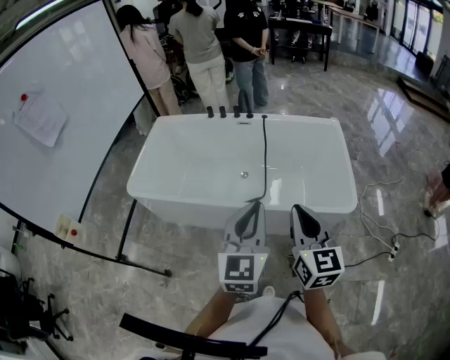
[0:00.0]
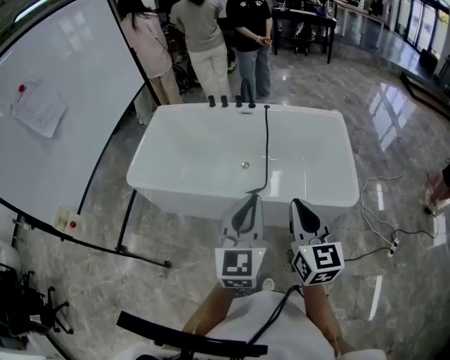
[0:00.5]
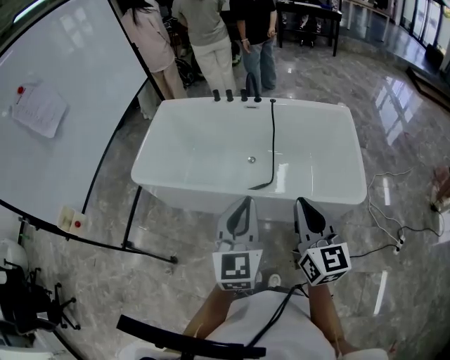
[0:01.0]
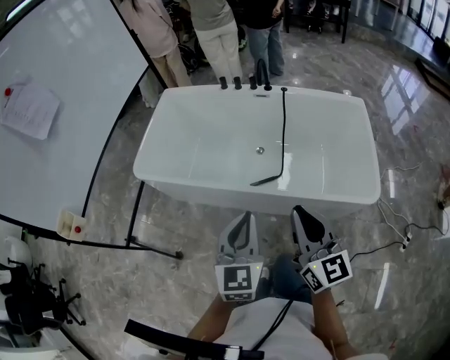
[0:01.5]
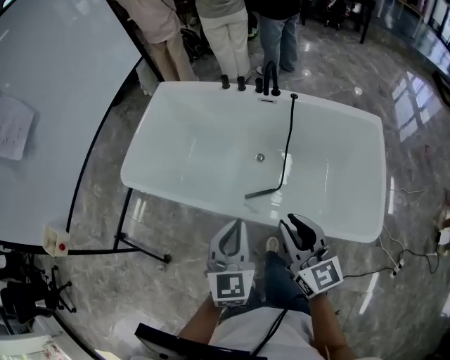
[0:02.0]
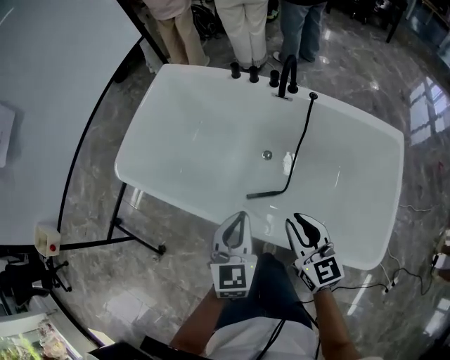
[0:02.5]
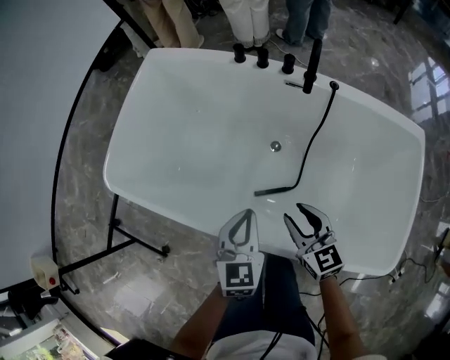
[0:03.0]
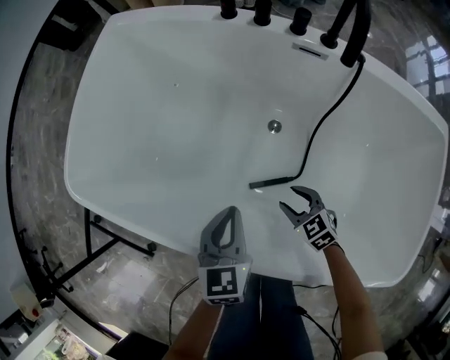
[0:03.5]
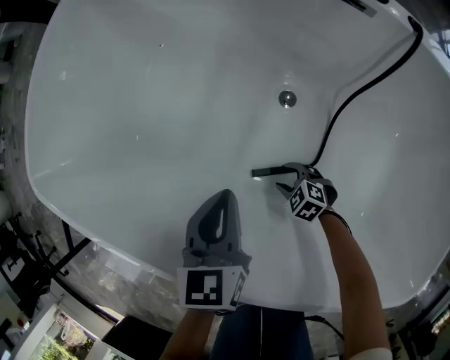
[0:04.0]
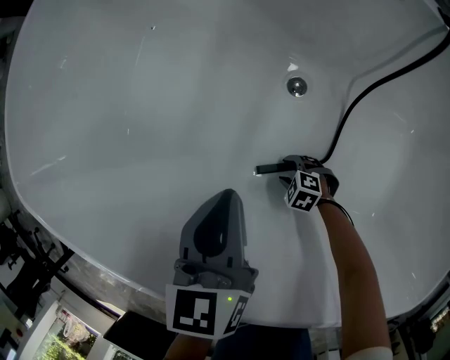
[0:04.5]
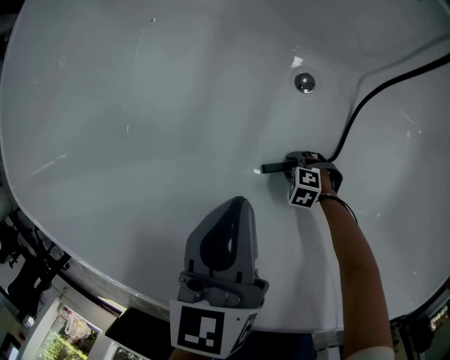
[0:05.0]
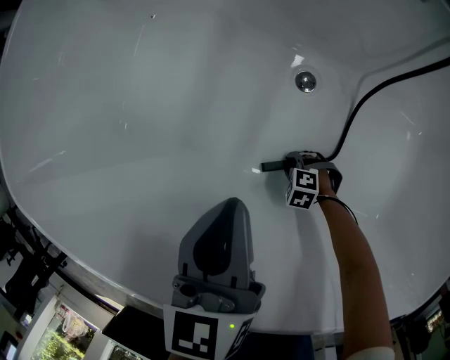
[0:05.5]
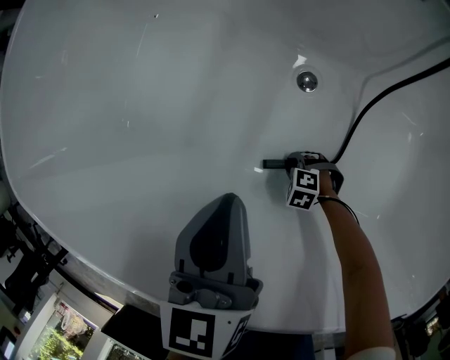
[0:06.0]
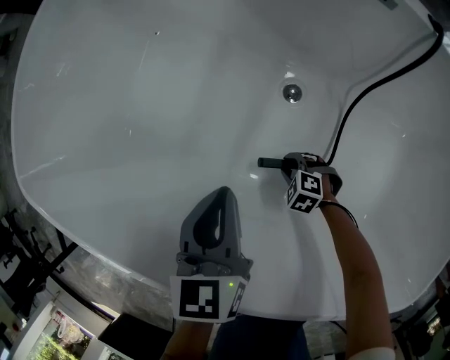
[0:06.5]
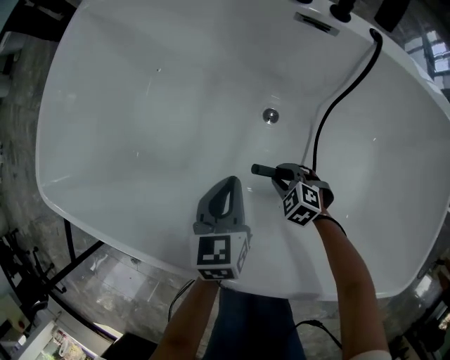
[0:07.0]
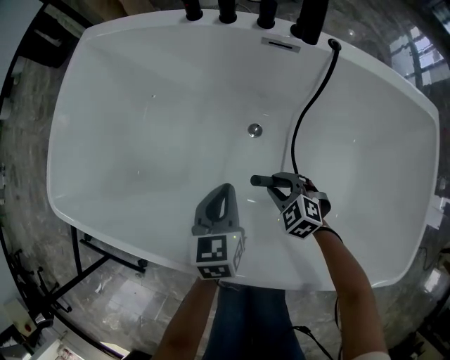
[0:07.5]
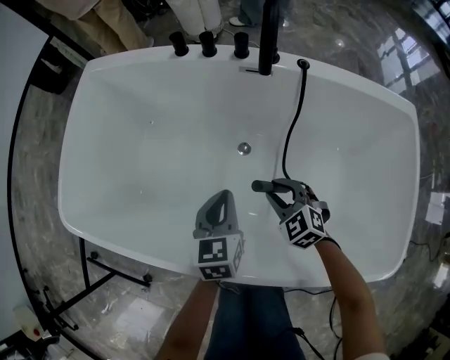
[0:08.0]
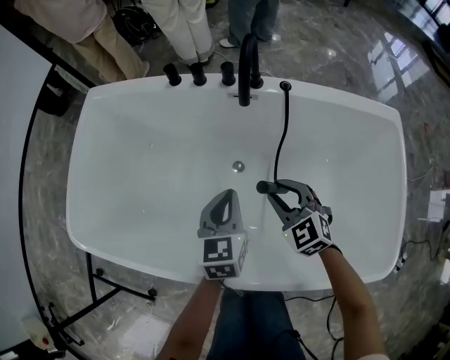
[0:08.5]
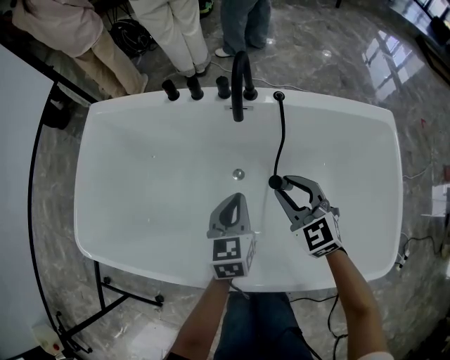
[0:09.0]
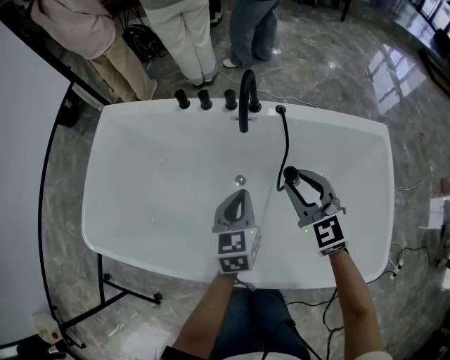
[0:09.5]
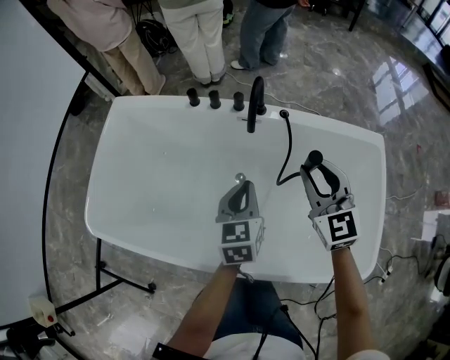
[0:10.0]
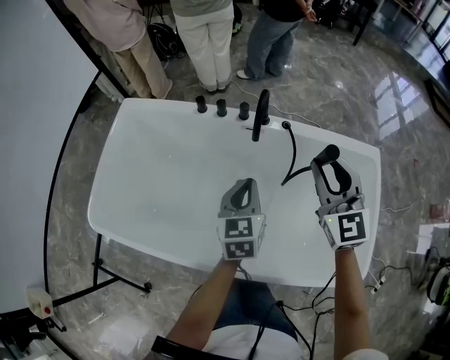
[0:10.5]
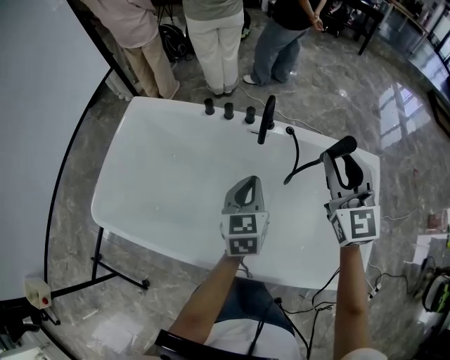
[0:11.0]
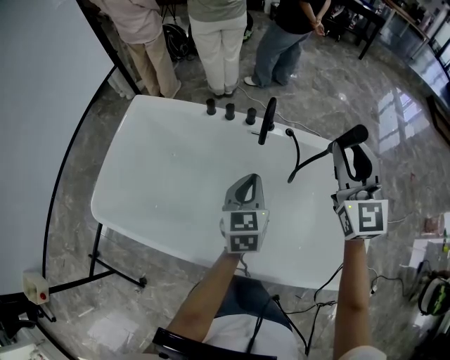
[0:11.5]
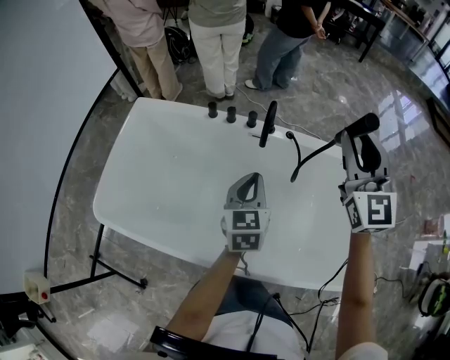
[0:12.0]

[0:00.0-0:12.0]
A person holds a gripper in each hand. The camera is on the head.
0:00.0 to 0:02.0: The right gripper travels forward and downward by about 20 cm, and turns by about 20 degrees. The left gripper heads forward, downward and to the left, covering approximately 25 cm, and swivels approximately 20 degrees.
0:02.0 to 0:04.0: The left gripper is displaced downward by roughly 40 cm, and rotates approximately 30 degrees. Meanwhile the right gripper moves downward, approximately 70 cm, tips its fingers downward by some 60 degrees, and opens its fingers.
0:04.0 to 0:06.0: The right gripper is displaced downward by some 10 cm, and changes its angle by roughly 20 degrees.
0:06.0 to 0:08.0: The right gripper heads upward, covering approximately 40 cm, and angles its fingers upward, by about 30 degrees, while the left gripper goes approximately 10 cm upward.
0:08.0 to 0:10.0: The right gripper shifts some 35 cm upward, and angles its fingers upward, by approximately 30 degrees, while the left gripper heads upward and to the right, covering about 20 cm.
0:10.0 to 0:12.0: The right gripper moves upward, about 20 cm. The left gripper is displaced upward by about 10 cm.

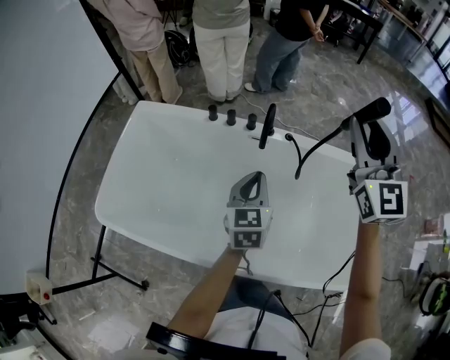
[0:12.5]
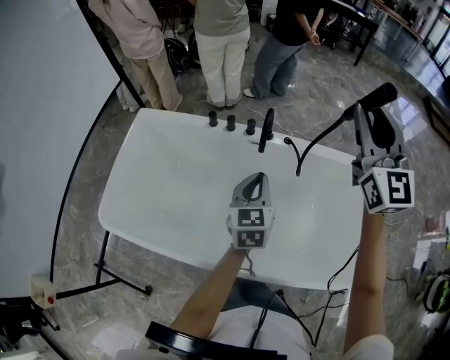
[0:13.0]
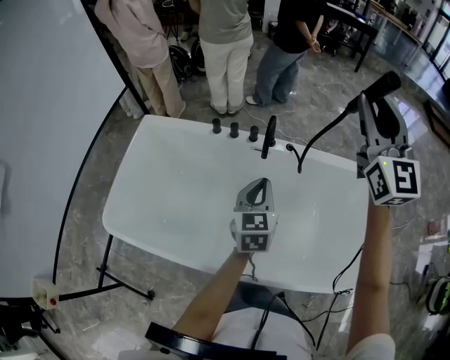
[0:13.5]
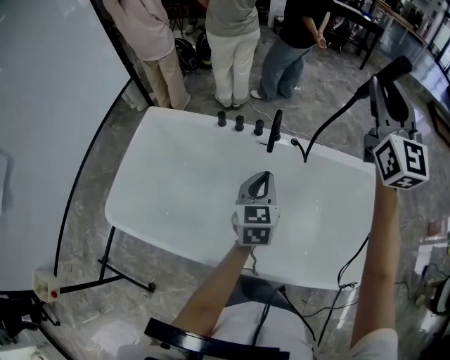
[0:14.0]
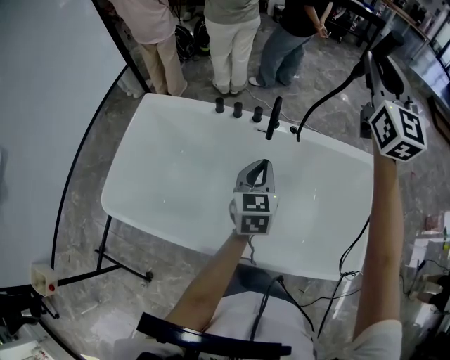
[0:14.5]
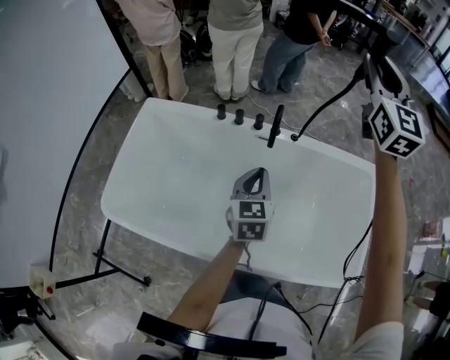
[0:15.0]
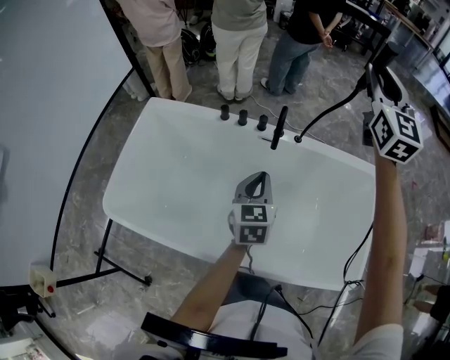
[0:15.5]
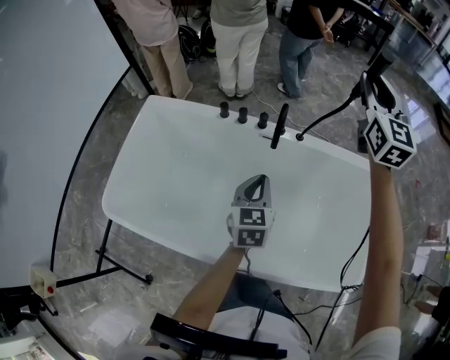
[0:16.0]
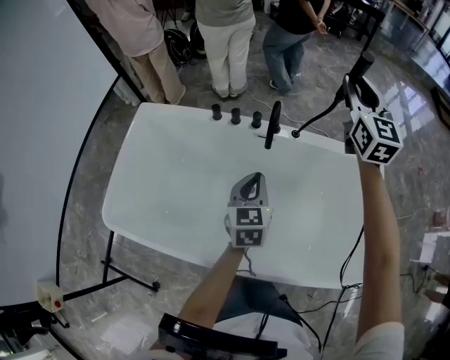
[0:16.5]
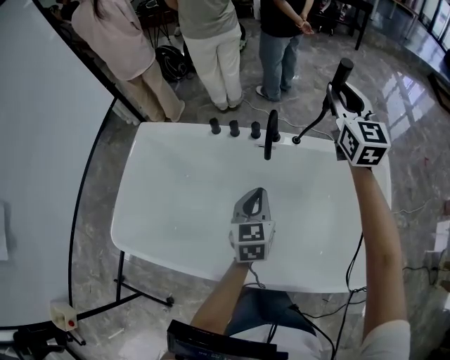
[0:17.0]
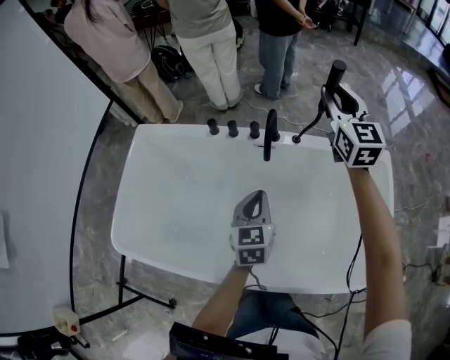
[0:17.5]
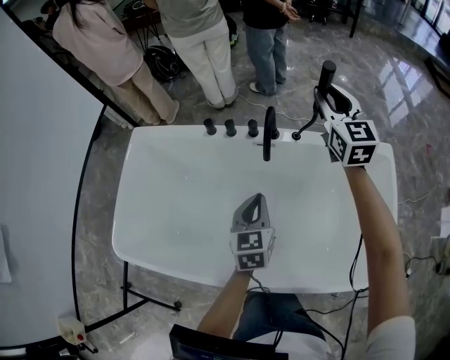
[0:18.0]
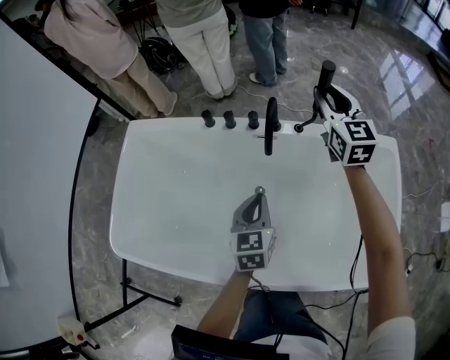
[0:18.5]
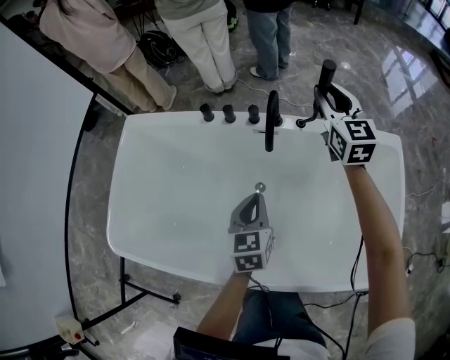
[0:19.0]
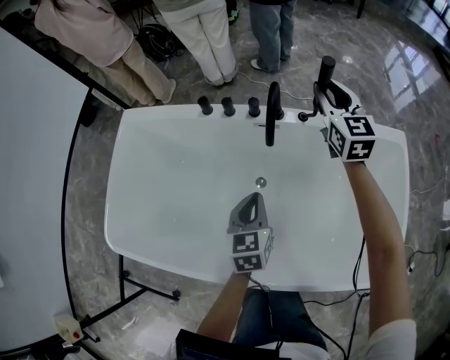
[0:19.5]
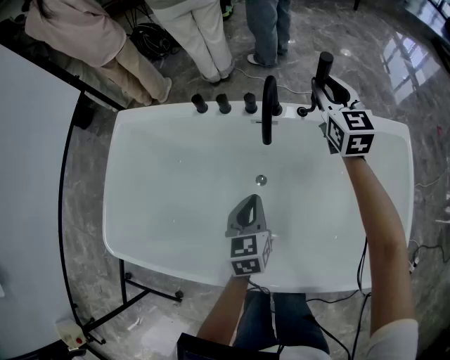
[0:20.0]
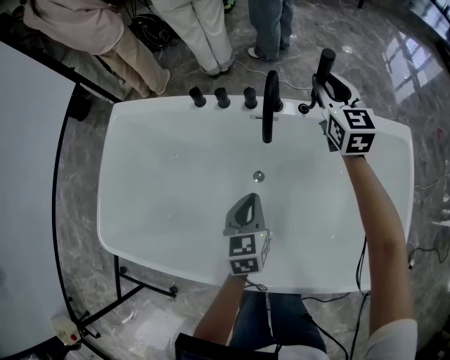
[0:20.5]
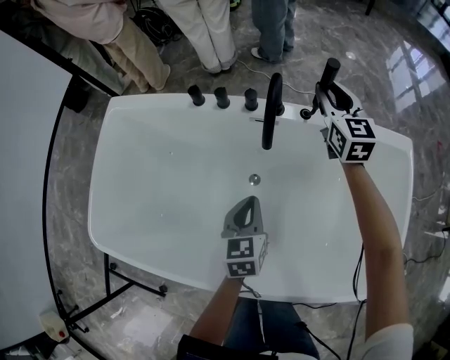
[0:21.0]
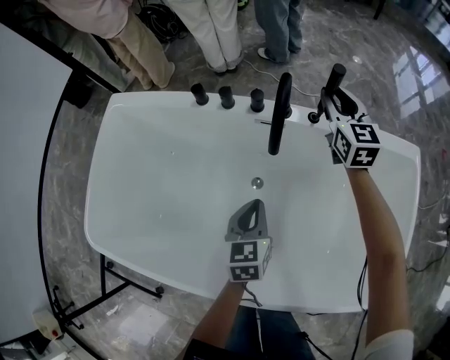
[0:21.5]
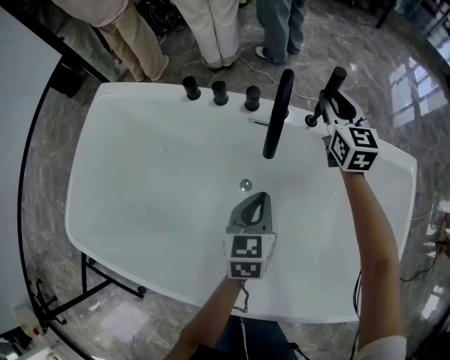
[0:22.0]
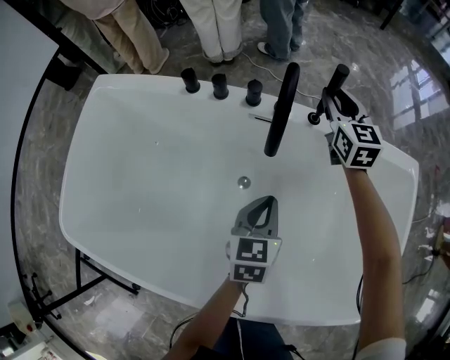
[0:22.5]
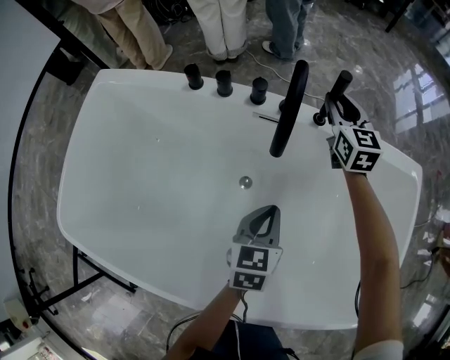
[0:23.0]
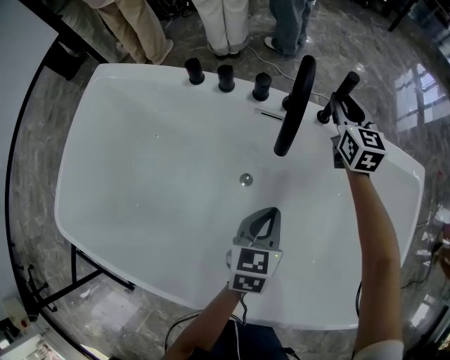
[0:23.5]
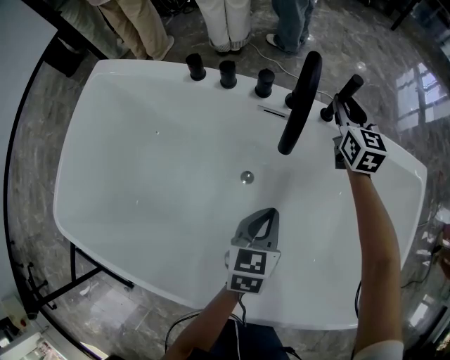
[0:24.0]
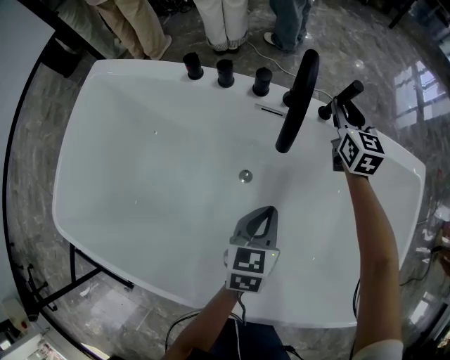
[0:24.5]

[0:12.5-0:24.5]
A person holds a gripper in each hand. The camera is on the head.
0:12.5 to 0:14.5: The right gripper goes roughly 10 cm upward and forward.
0:14.5 to 0:16.5: The right gripper moves downward and forward, approximately 15 cm. Meanwhile the left gripper goes about 5 cm downward.
0:16.5 to 0:18.5: The left gripper moves downward, roughly 5 cm. Meanwhile the right gripper heads downward, covering roughly 15 cm.
0:18.5 to 0:20.5: Both grippers move downward, about 10 cm.
0:20.5 to 0:22.5: The left gripper heads to the right and downward, covering approximately 10 cm; the right gripper heads downward and forward, covering roughly 15 cm.
0:22.5 to 0:24.5: The right gripper is displaced downward by roughly 5 cm.

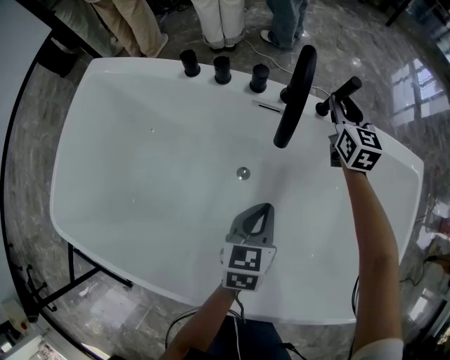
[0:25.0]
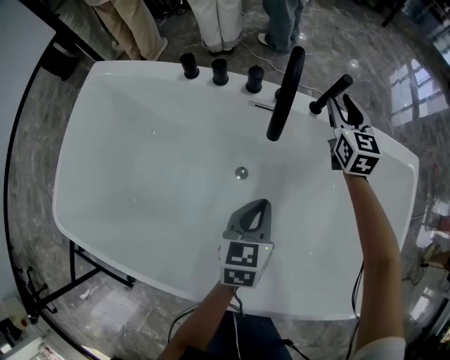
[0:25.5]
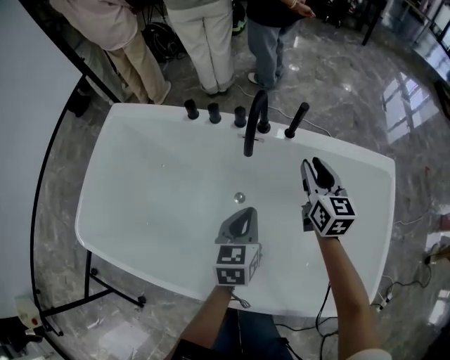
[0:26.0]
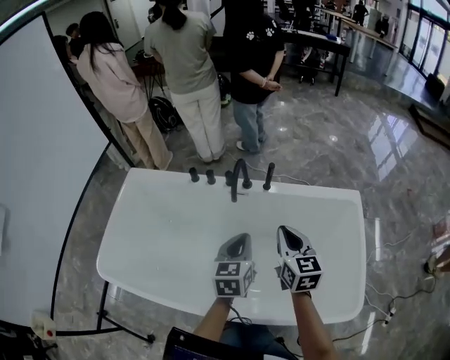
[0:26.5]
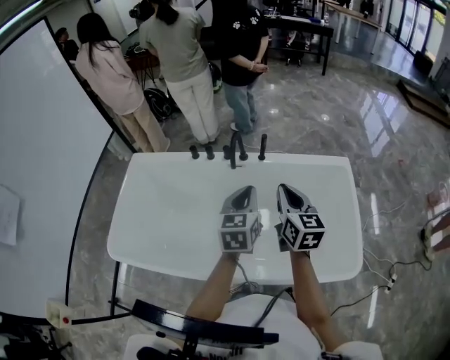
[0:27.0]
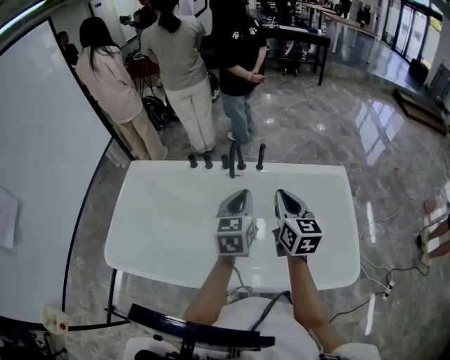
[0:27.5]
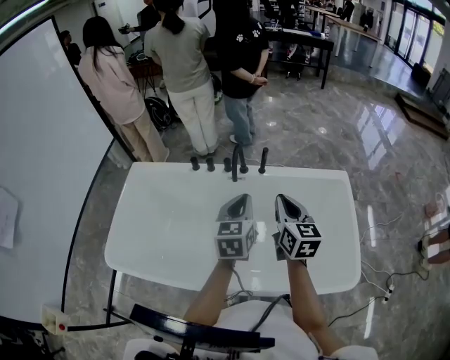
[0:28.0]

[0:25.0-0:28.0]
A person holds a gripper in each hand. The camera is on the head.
0:25.0 to 0:26.5: The right gripper moves backward and upward, roughly 40 cm, and closes its fingers; the left gripper travels upward by some 25 cm.
0:26.5 to 0:28.0: Both grippers move upward, about 10 cm.
